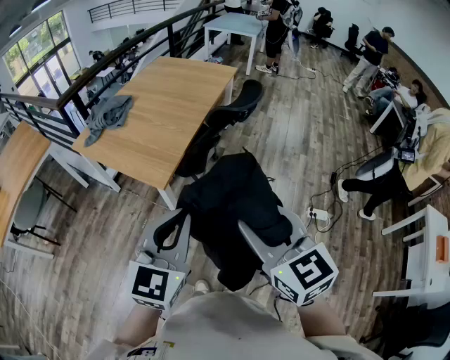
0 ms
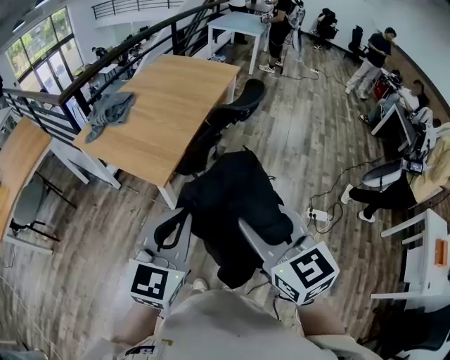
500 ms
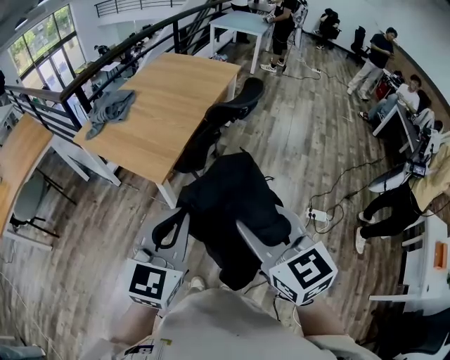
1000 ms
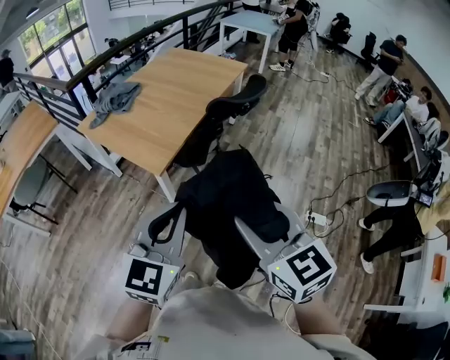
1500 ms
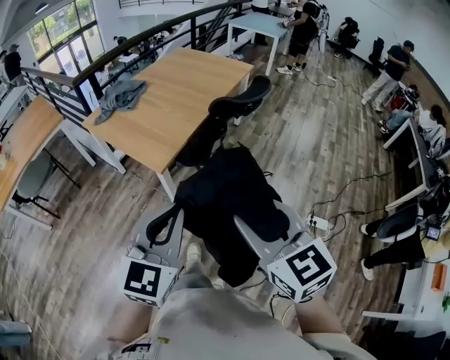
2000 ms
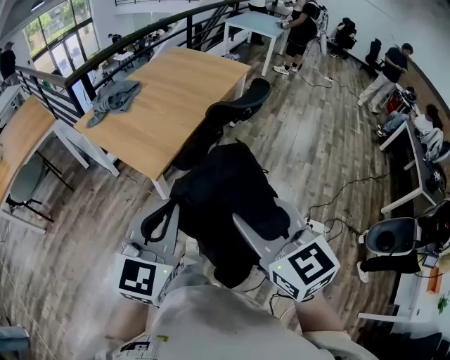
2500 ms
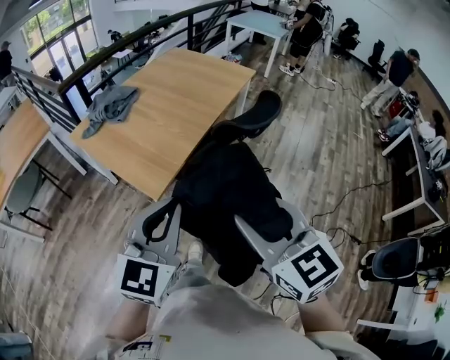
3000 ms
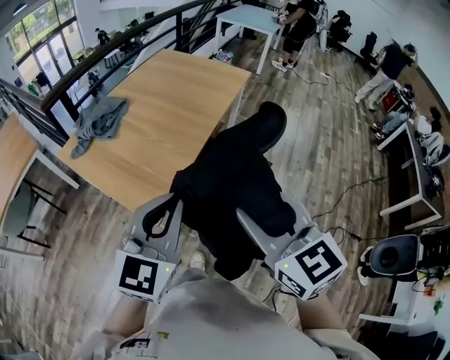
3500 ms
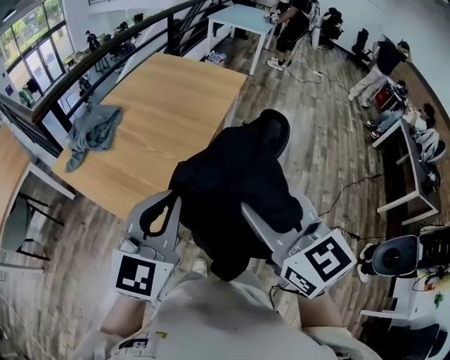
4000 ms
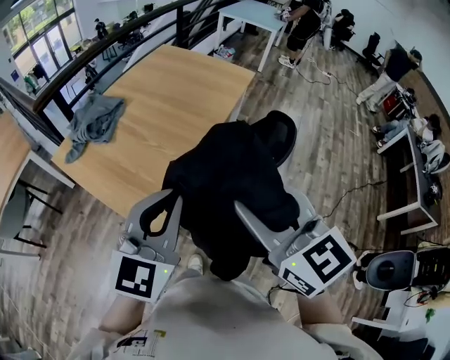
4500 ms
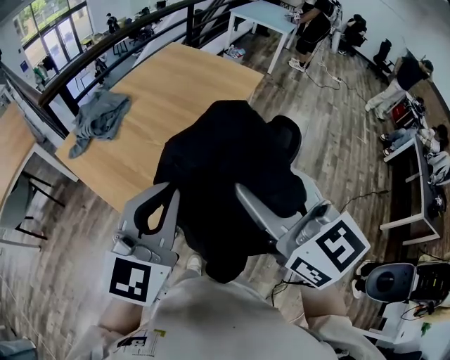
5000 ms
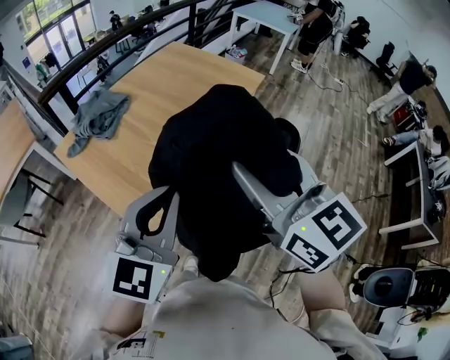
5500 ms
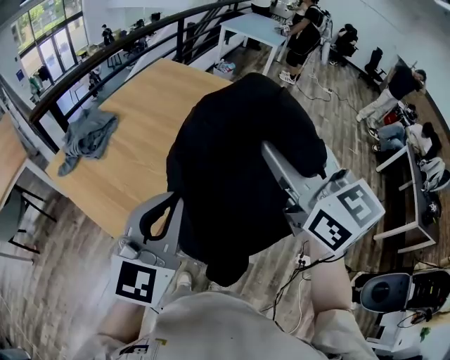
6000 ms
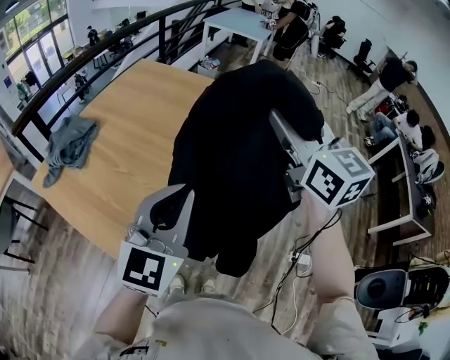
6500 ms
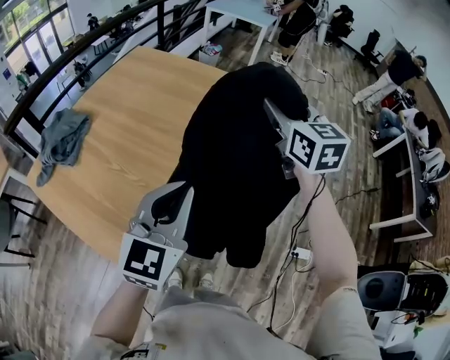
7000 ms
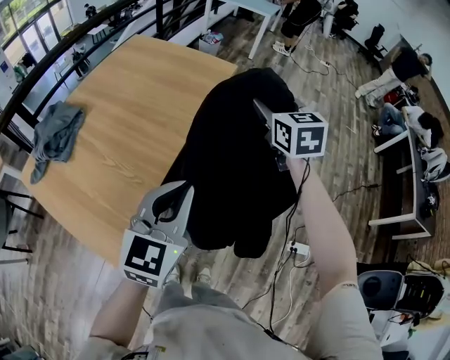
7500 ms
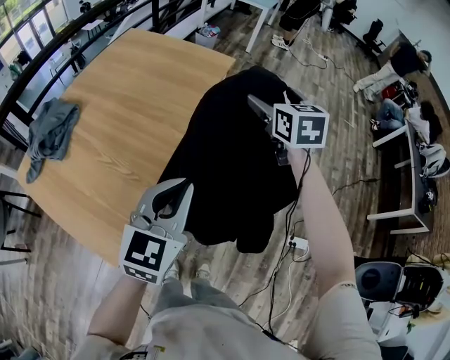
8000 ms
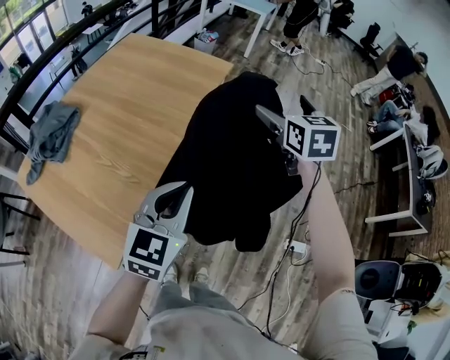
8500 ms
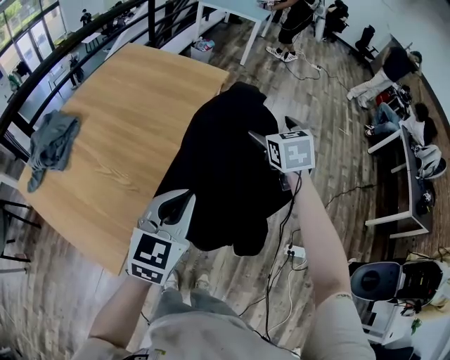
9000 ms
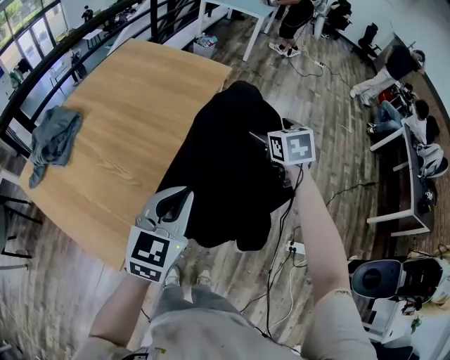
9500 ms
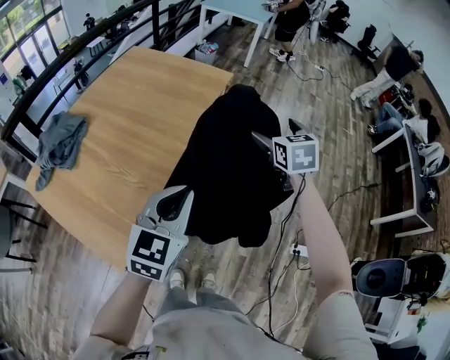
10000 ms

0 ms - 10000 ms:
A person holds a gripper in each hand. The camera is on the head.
0 ms - 2000 ms: The right gripper heads to the right, covering some 5 cm. The left gripper shifts by approximately 5 cm.
2000 ms - 4000 ms: The two grippers go roughly 40 cm forward.
4000 ms - 6000 ms: The right gripper shifts approximately 25 cm forward, to the right and upward. The left gripper goes about 15 cm to the right and forward.
6000 ms - 8000 ms: The left gripper goes roughly 25 cm forward, downward and to the right, while the right gripper is displaced forward and downward by about 40 cm, turns by approximately 30 degrees, and opens its fingers.
8000 ms - 10000 ms: The right gripper shifts roughly 10 cm backward, and reaches roughly 5 cm downward, then returns.

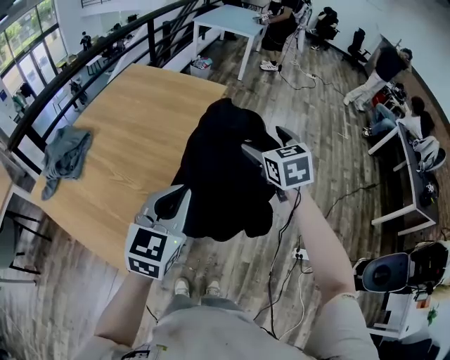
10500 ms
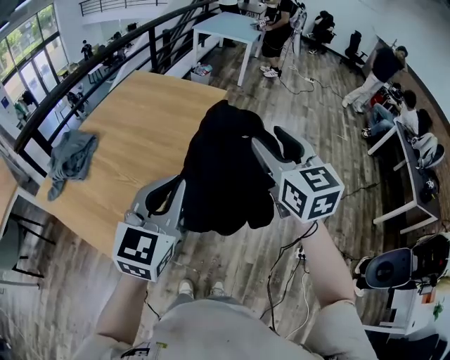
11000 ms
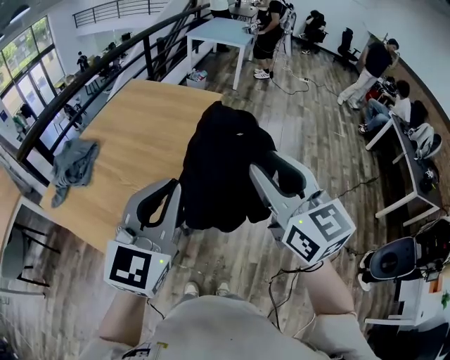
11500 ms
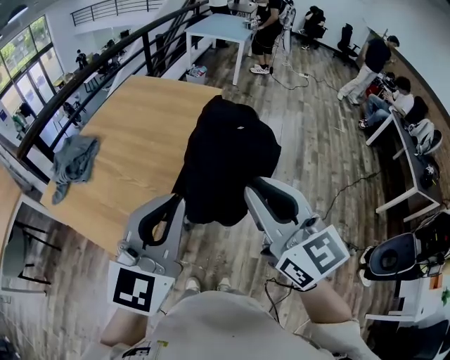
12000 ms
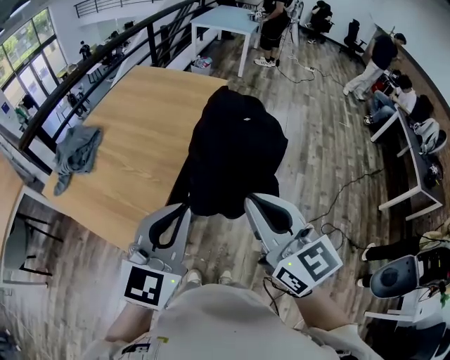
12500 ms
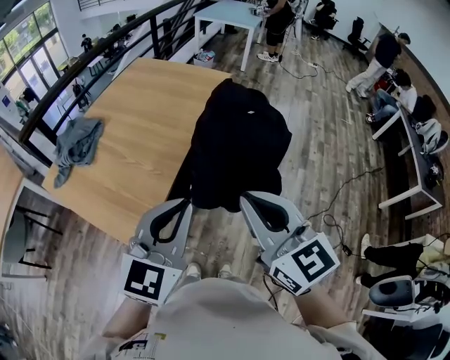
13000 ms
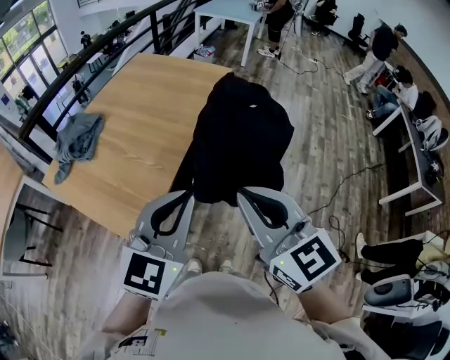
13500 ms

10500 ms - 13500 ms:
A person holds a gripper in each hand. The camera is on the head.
10500 ms - 12000 ms: The right gripper goes approximately 30 cm backward and upward, swivels roughly 30 degrees, and closes. The left gripper travels backward and upward by approximately 20 cm.
12000 ms - 13500 ms: The left gripper moves downward, approximately 5 cm. The right gripper heads downward and to the left, covering roughly 5 cm.

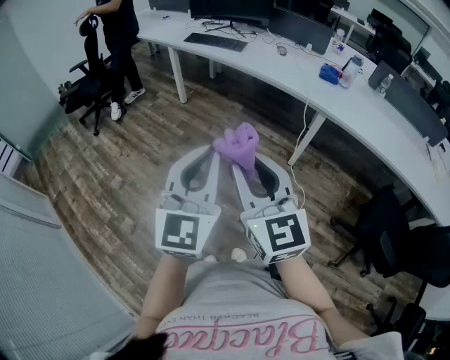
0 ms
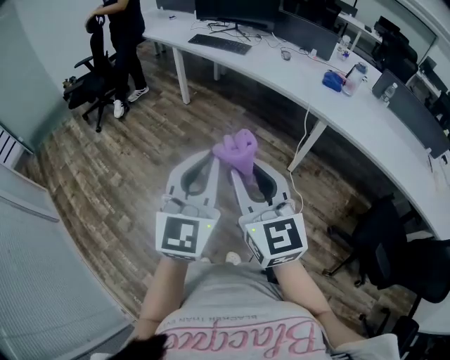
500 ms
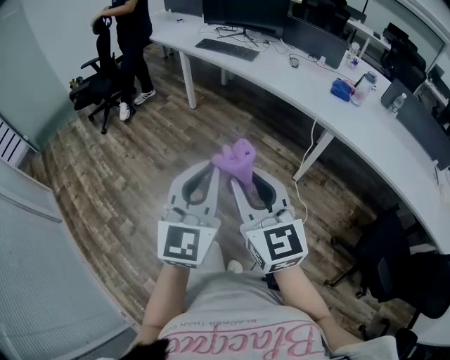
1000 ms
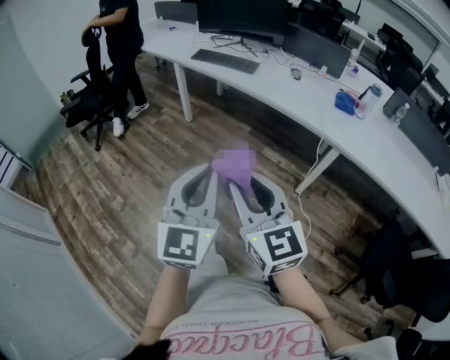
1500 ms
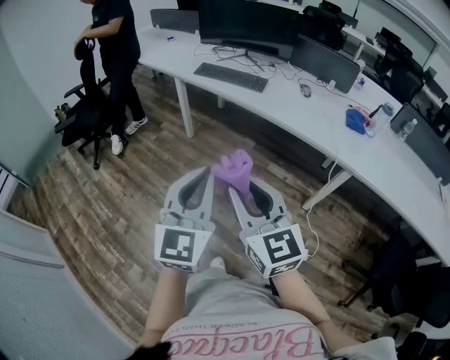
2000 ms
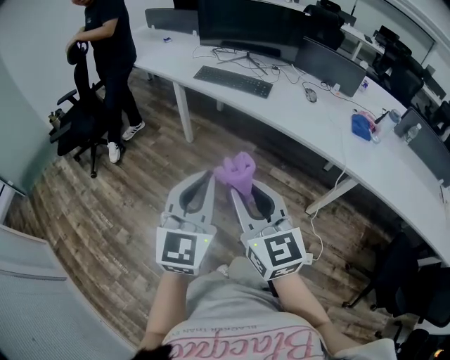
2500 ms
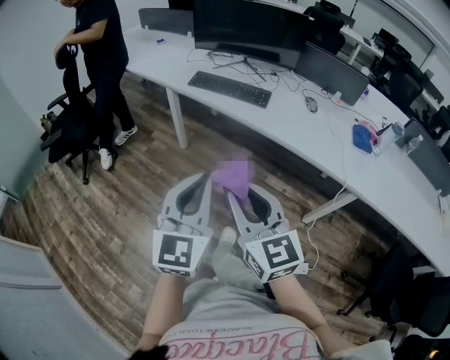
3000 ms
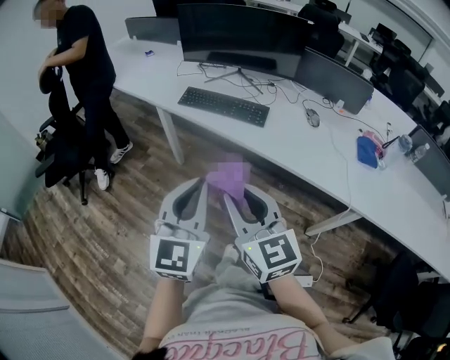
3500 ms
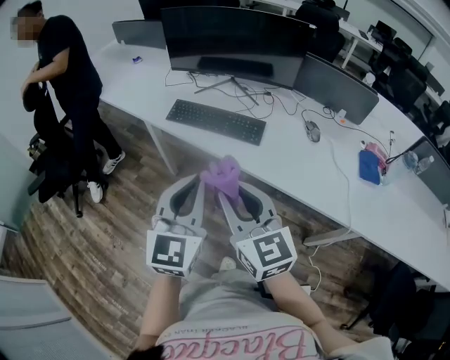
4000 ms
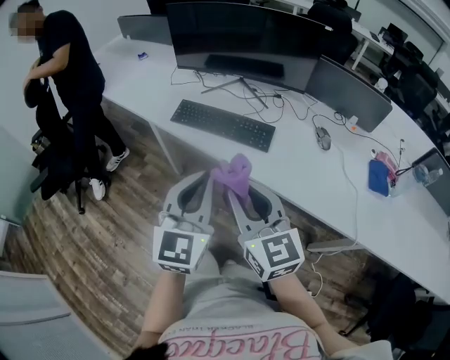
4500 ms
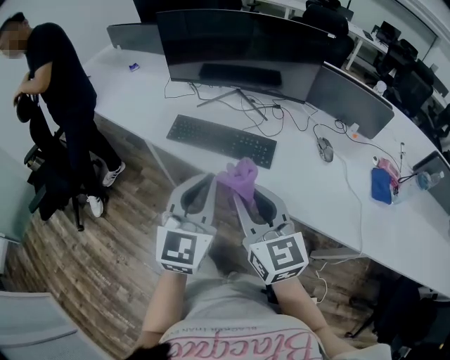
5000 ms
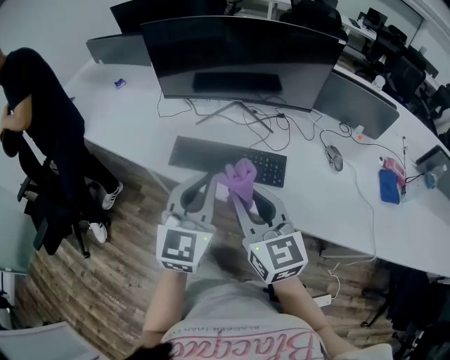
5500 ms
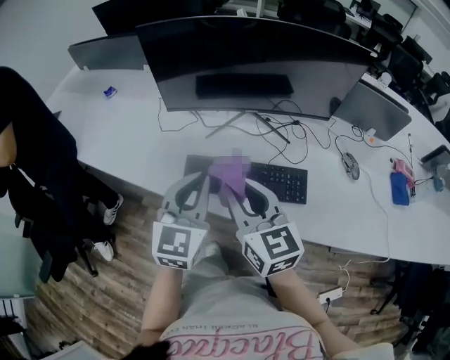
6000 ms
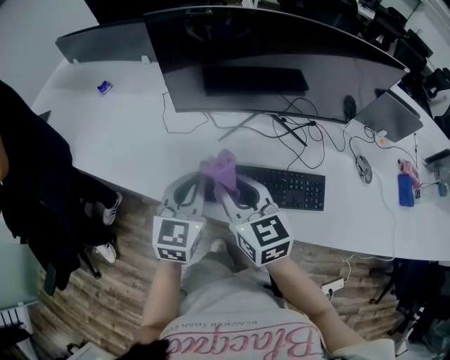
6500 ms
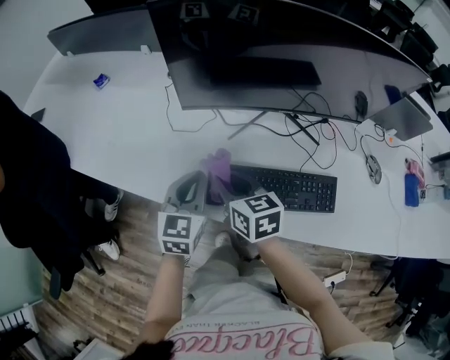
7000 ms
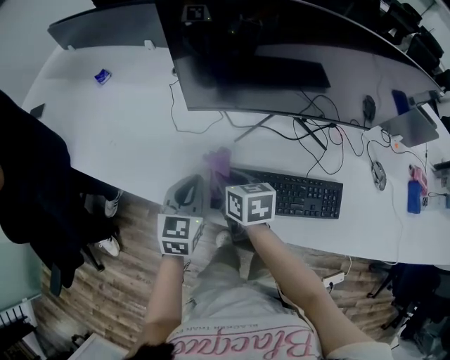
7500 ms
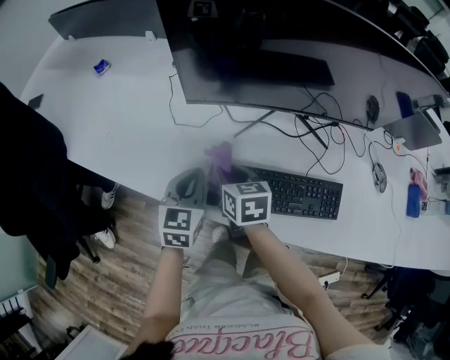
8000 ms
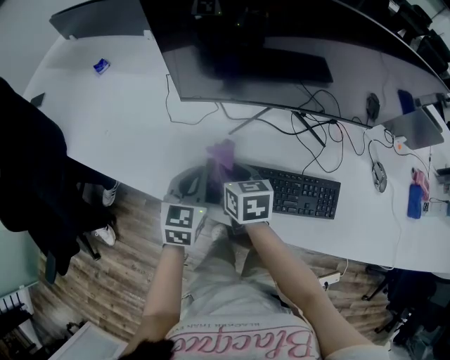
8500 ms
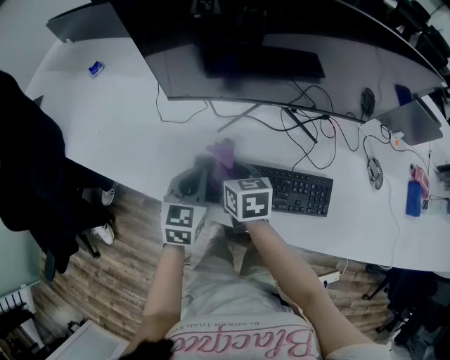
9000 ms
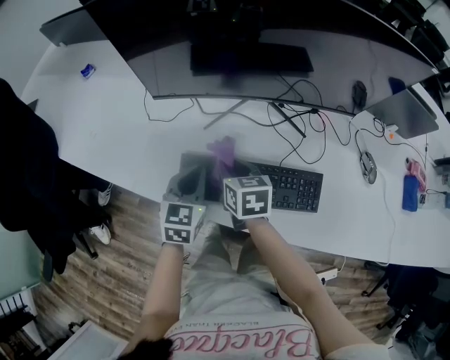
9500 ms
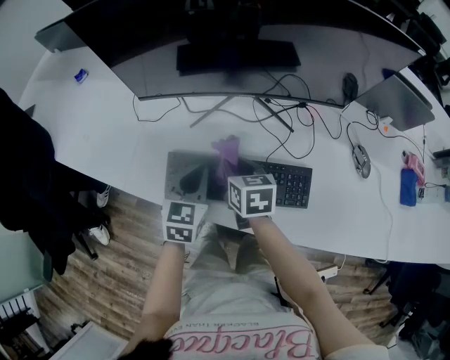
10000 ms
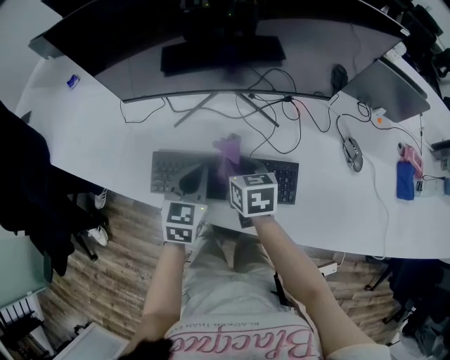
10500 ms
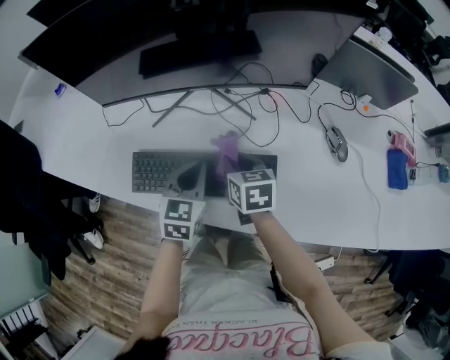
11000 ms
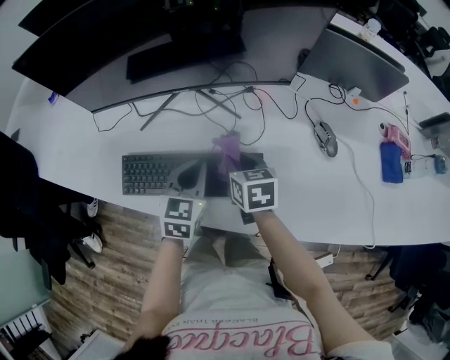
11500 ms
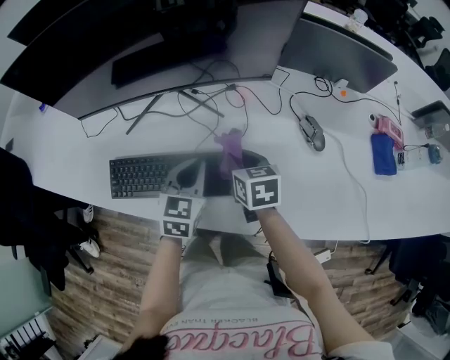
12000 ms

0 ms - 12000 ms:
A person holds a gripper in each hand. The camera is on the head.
0 ms - 2000 ms: The two grippers go about 30 cm forward.
2000 ms - 4000 ms: Both grippers are carried forward, about 40 cm.
4000 ms - 6000 ms: The grippers both shift forward by about 35 cm.
6000 ms - 8000 ms: Both grippers move downward, forward and to the left, about 30 cm. The left gripper rotates approximately 20 degrees, while the right gripper tips its fingers downward by some 30 degrees.
8000 ms - 10000 ms: Both grippers move to the right, some 15 cm.
10000 ms - 12000 ms: The grippers both shift to the right by approximately 20 cm.

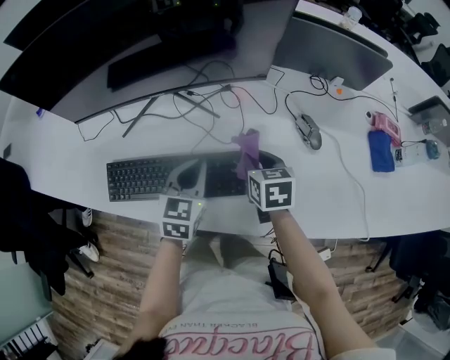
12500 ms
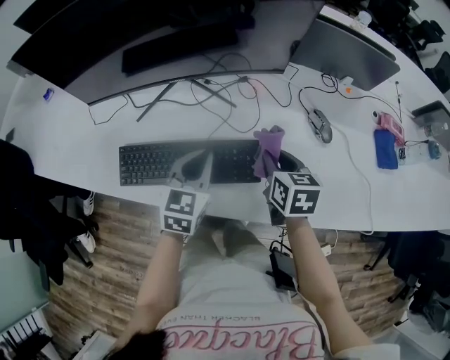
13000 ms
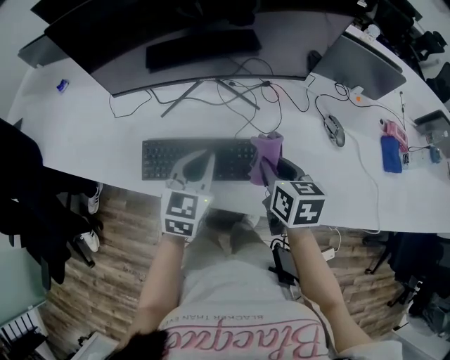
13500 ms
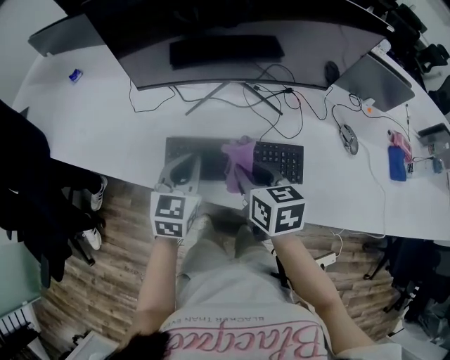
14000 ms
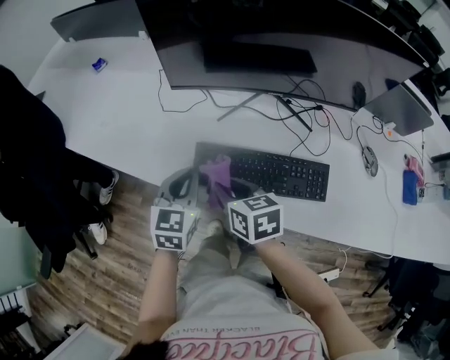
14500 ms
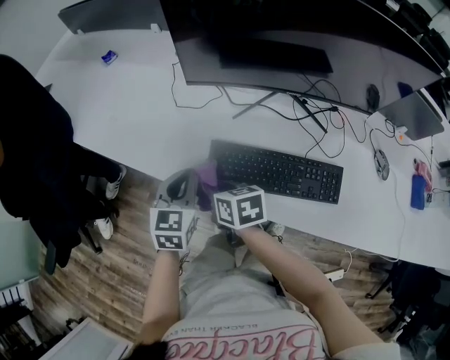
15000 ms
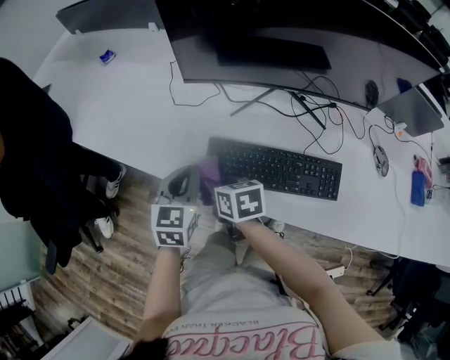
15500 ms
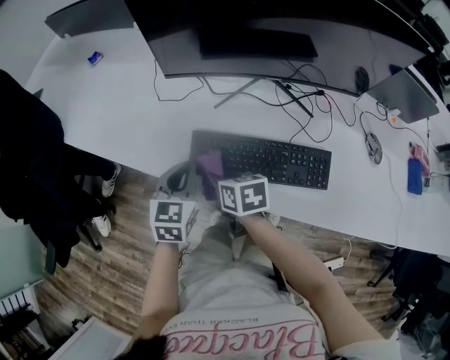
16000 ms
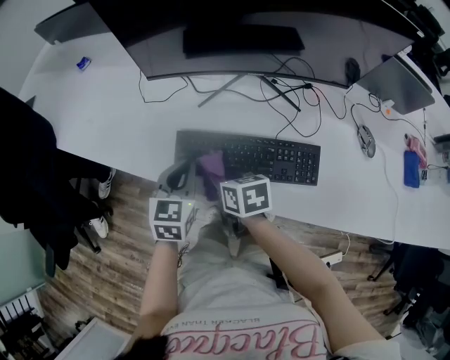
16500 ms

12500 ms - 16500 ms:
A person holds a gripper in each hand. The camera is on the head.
12500 ms - 14500 ms: The right gripper moves roughly 40 cm, and turns by some 20 degrees. The left gripper ends up approximately 35 cm from where it was.
14500 ms - 16500 ms: The right gripper heads downward, covering approximately 5 cm, and goes to the left and returns, some 5 cm each way. Meanwhile the left gripper changes place by some 5 cm.
